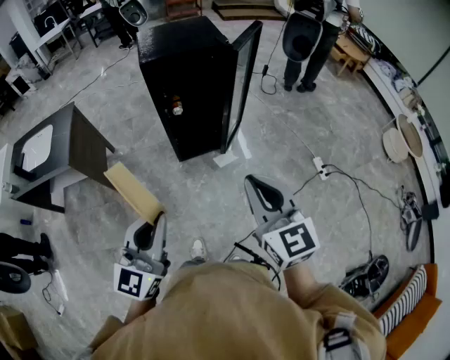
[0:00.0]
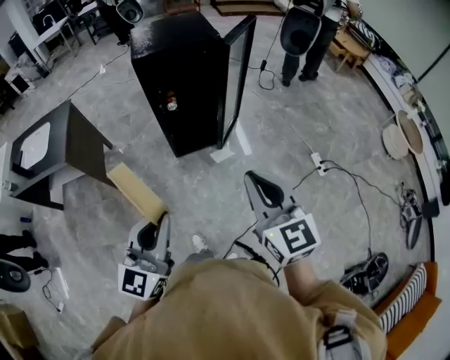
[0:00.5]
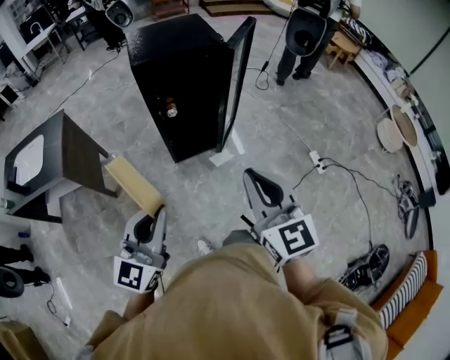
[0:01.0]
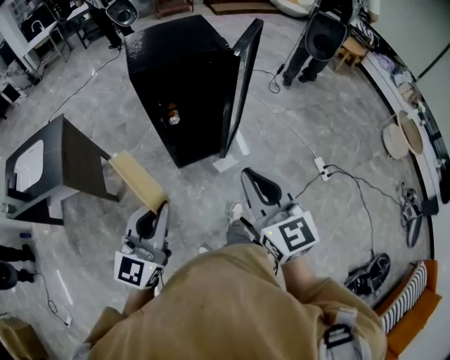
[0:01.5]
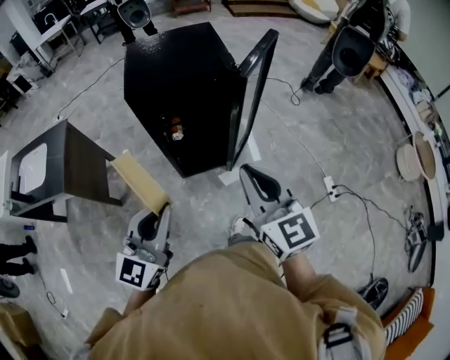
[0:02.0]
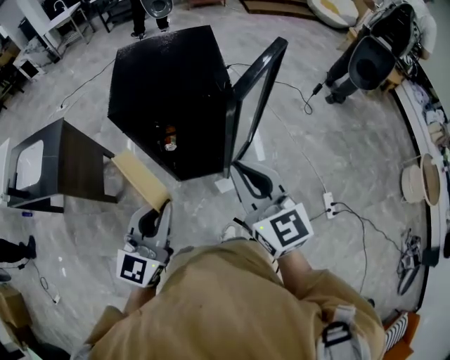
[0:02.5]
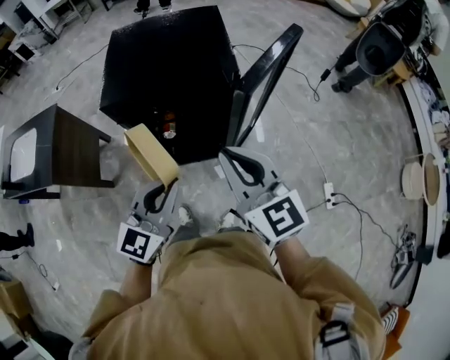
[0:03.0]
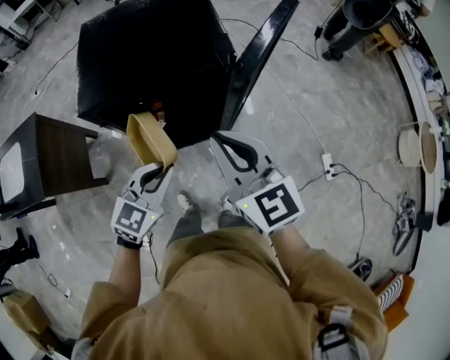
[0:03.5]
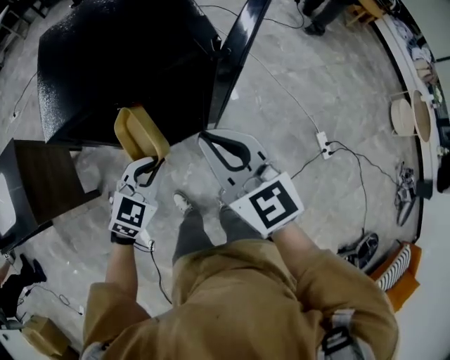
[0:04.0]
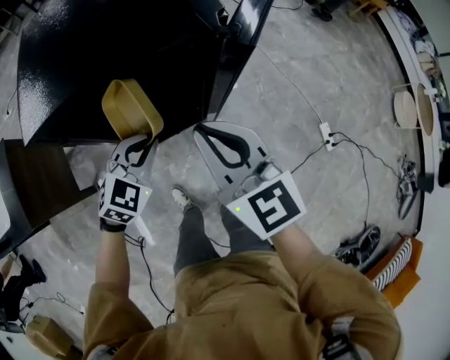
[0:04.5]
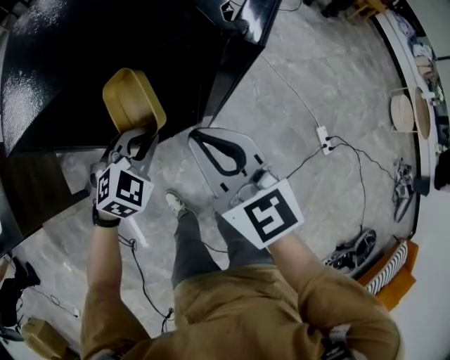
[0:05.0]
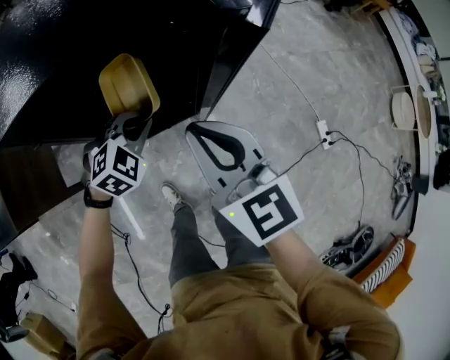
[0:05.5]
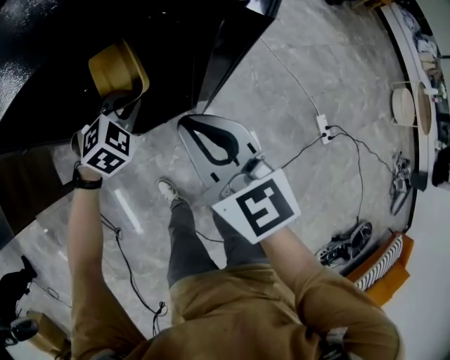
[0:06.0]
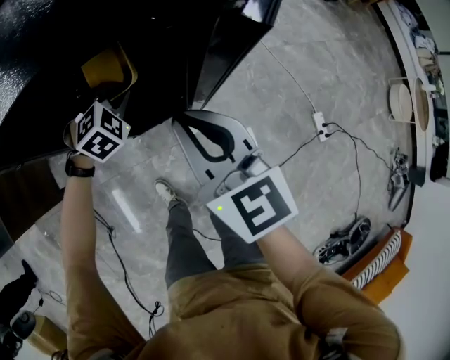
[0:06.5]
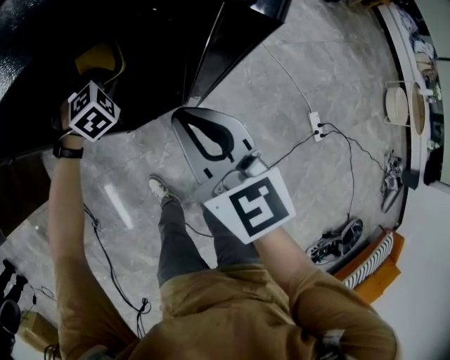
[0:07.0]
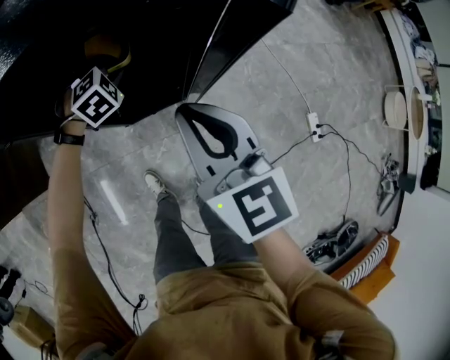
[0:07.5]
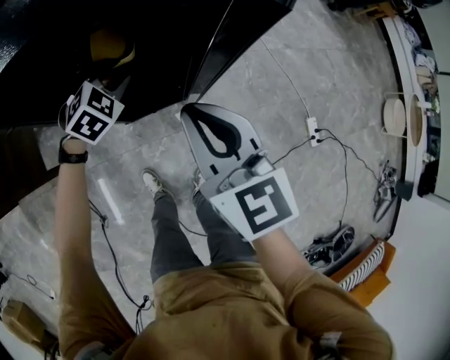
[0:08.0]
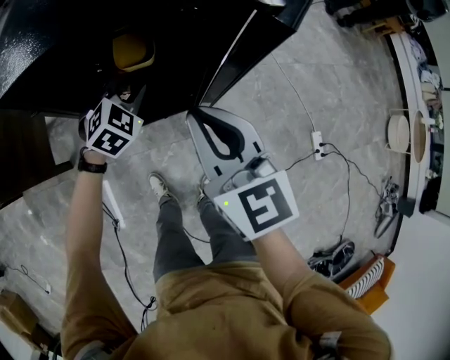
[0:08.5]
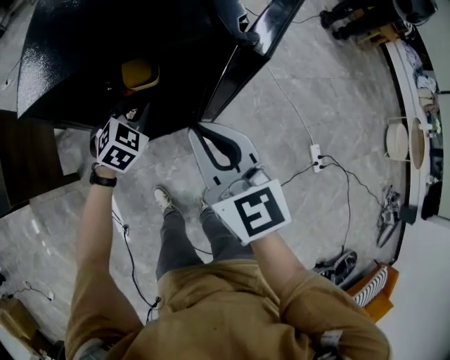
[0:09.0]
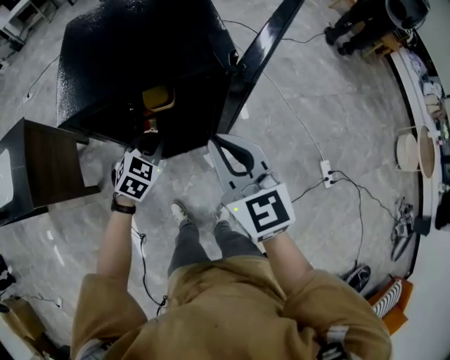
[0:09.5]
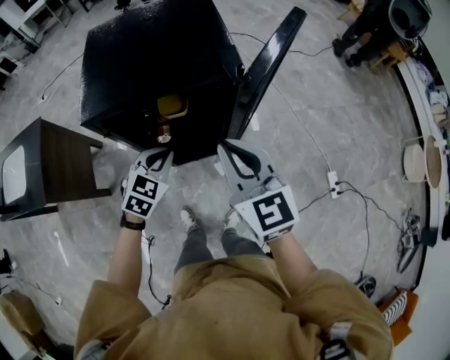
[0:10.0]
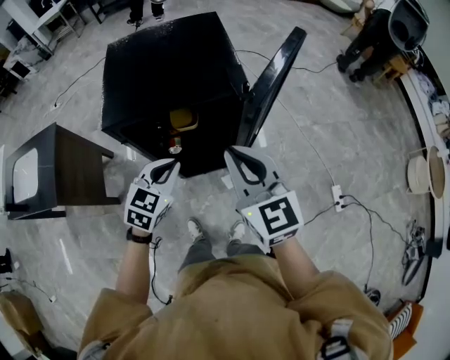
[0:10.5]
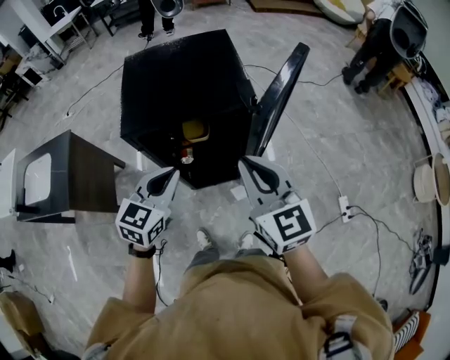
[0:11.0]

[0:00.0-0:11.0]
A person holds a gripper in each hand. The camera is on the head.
0:00.0 to 0:02.0: The two grippers go approximately 25 cm forward.
0:02.0 to 0:03.5: The right gripper goes some 25 cm forward, while the left gripper goes about 30 cm forward and downward, and swivels approximately 30 degrees.
0:03.5 to 0:05.5: The left gripper travels downward and forward by about 20 cm, and rotates some 40 degrees, while the right gripper shifts approximately 10 cm downward.
0:05.5 to 0:07.5: The left gripper goes some 15 cm forward and downward.
0:07.5 to 0:09.0: The right gripper travels upward by some 5 cm, while the left gripper heads upward and backward, covering approximately 10 cm, and rotates roughly 20 degrees.
0:09.0 to 0:11.0: The right gripper shifts about 15 cm upward and backward, while the left gripper goes about 25 cm upward and backward, and turns by approximately 30 degrees.

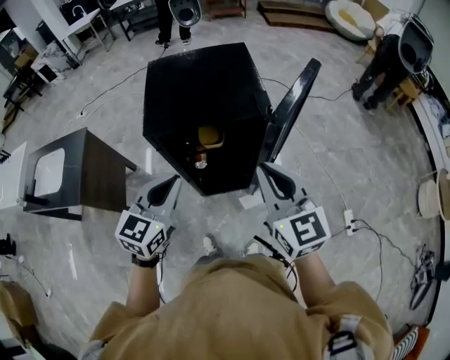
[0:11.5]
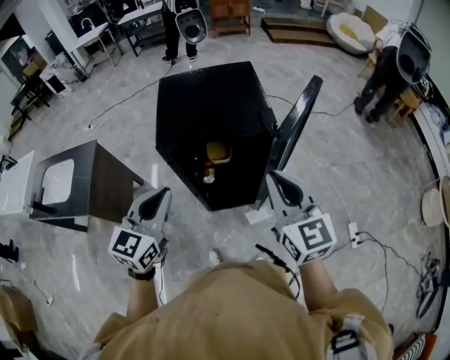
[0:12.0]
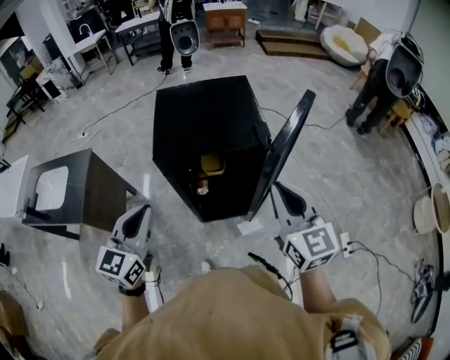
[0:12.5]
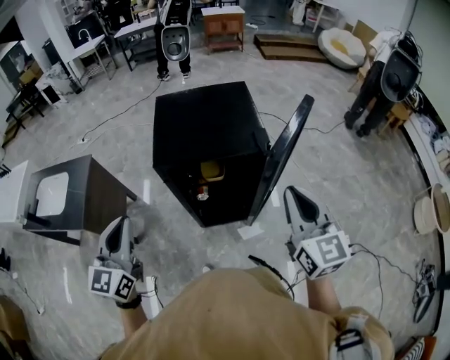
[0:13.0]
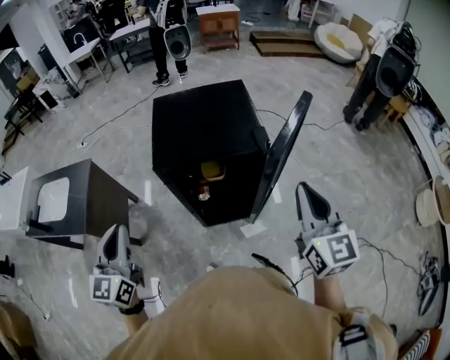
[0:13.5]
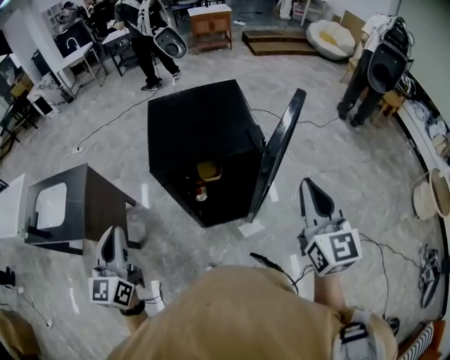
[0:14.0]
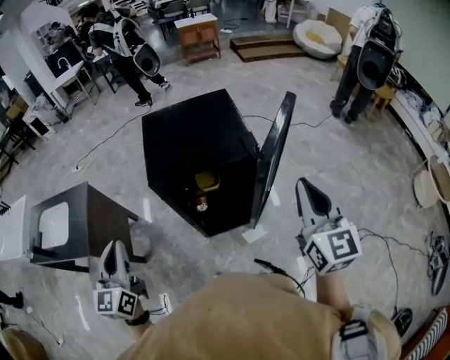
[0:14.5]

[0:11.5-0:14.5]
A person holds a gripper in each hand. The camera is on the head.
0:11.5 to 0:13.0: The right gripper moves approximately 5 cm, while the left gripper travels to the left and upward by some 15 cm, and turns by some 20 degrees.
0:13.0 to 0:14.5: The right gripper ends up roughly 5 cm from where it was.

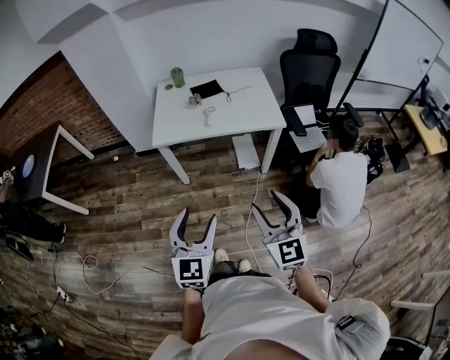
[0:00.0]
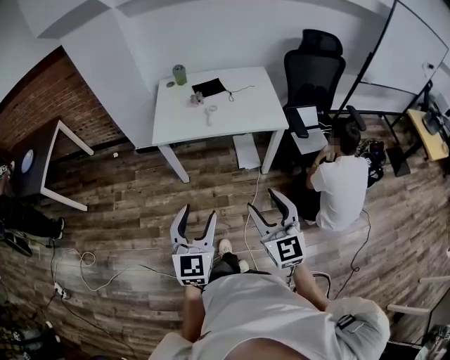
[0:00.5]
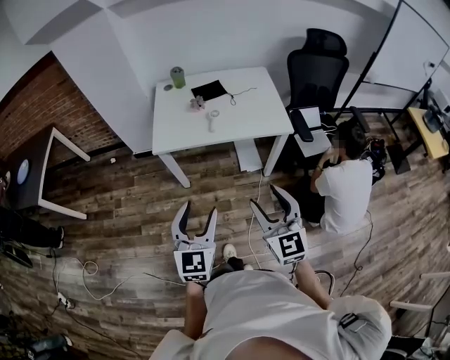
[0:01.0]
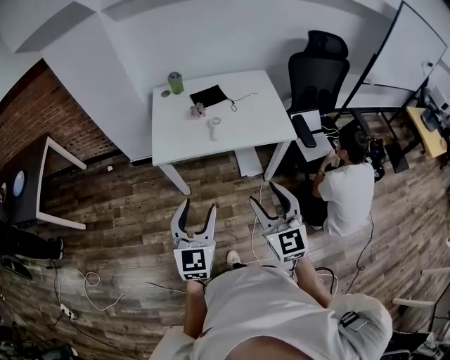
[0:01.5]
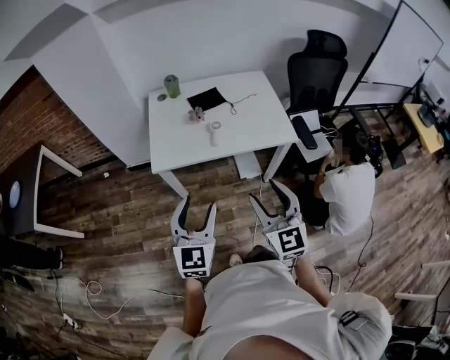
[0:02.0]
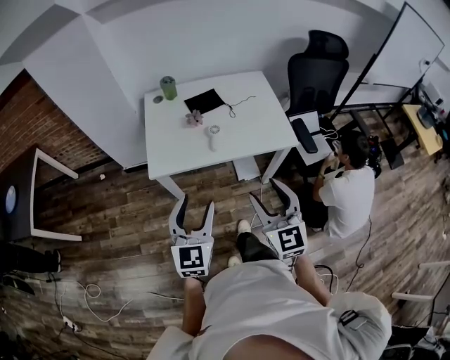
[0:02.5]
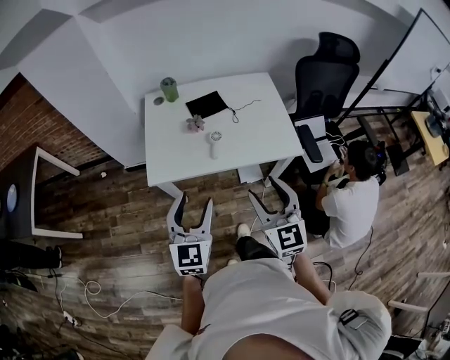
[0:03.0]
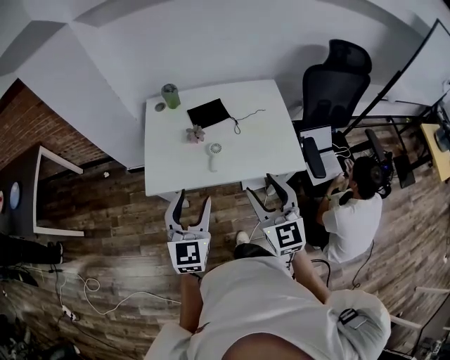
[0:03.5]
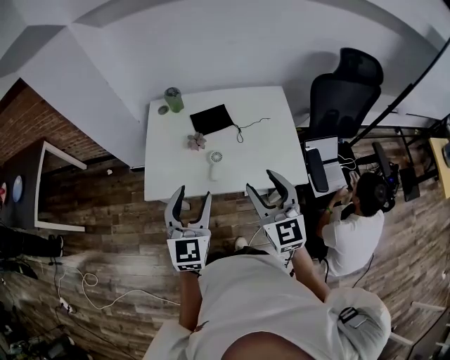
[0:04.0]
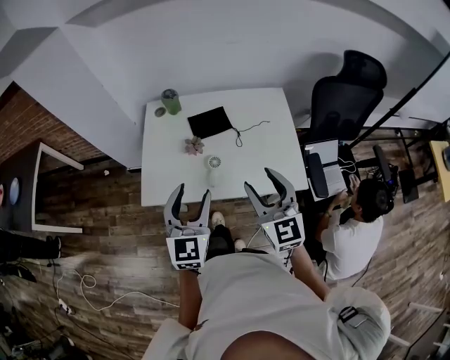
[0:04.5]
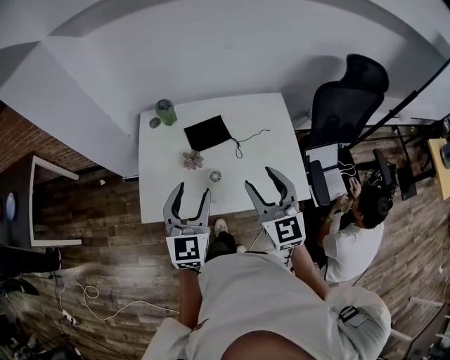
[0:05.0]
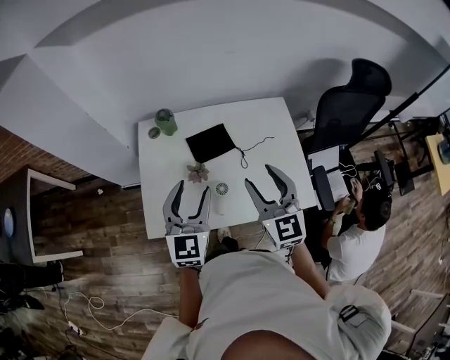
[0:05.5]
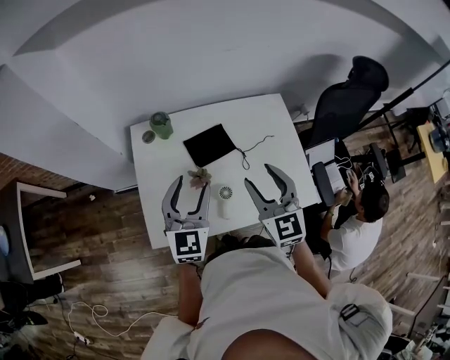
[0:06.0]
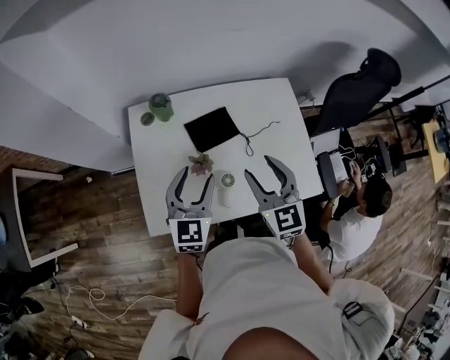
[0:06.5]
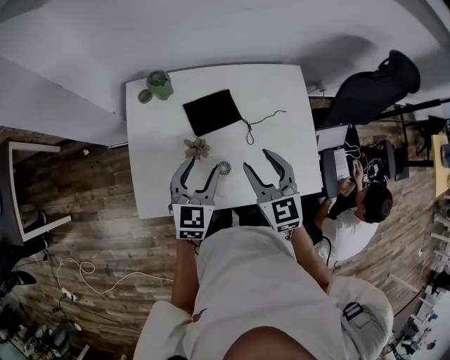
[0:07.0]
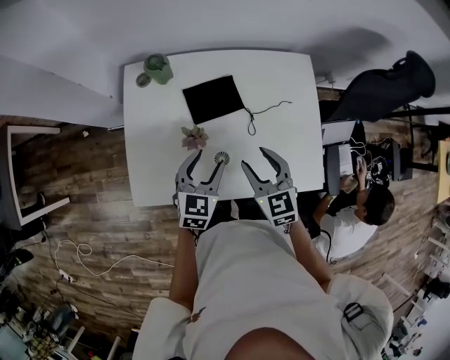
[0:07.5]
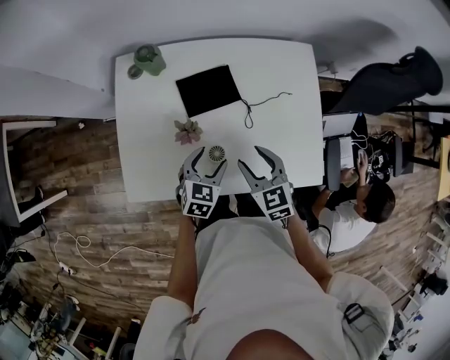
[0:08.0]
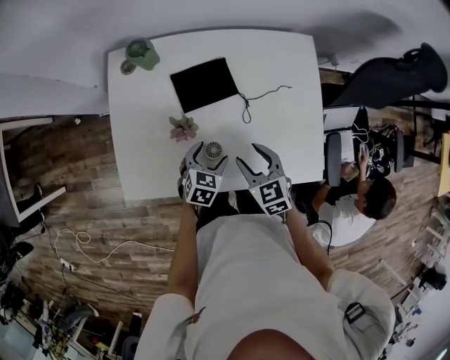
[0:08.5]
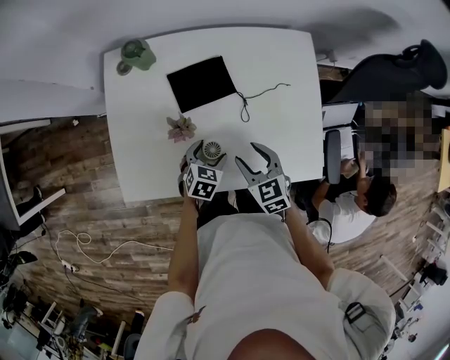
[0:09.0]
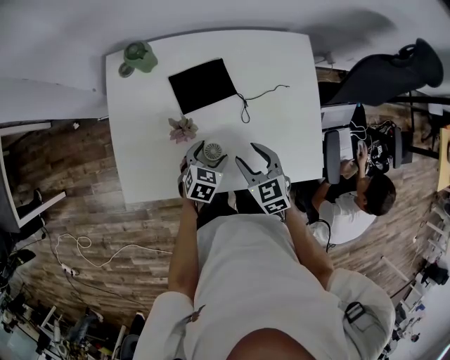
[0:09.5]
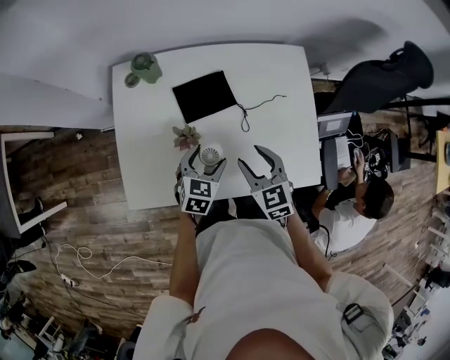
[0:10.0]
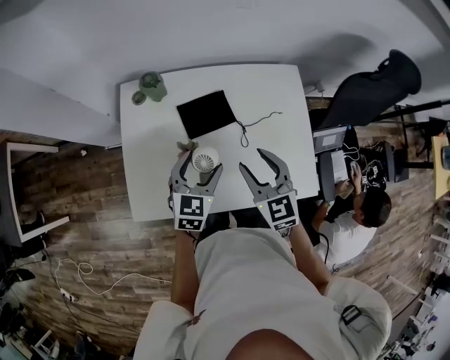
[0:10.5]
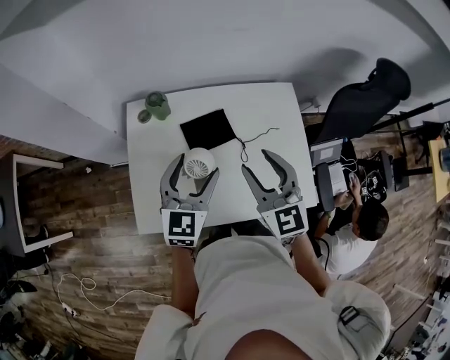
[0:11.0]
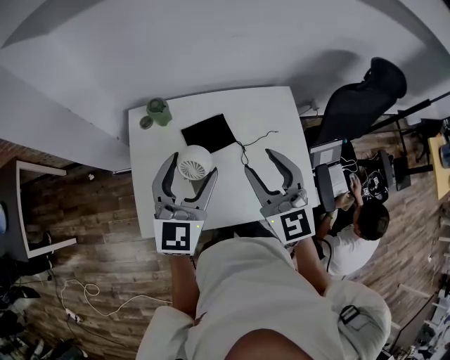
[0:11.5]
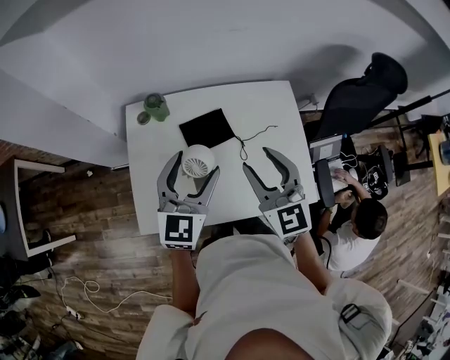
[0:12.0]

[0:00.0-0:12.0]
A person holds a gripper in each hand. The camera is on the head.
0:00.0 to 0:02.0: Both grippers move forward, roughly 20 cm.
0:02.0 to 0:04.0: Both grippers move forward, about 25 cm.
0:04.0 to 0:06.0: The grippers both shift forward by approximately 25 cm.
0:06.0 to 0:08.0: Both grippers move downward, some 25 cm. The right gripper changes its angle by approximately 30 degrees, while the left gripper tilts its fingers some 30 degrees downward.
0:08.0 to 0:10.0: The left gripper travels downward and back again, approximately 10 cm each way.
0:10.0 to 0:12.0: Both grippers move upward, approximately 25 cm. The right gripper swivels some 30 degrees. Meanwhile the left gripper tilts its fingers some 30 degrees upward.

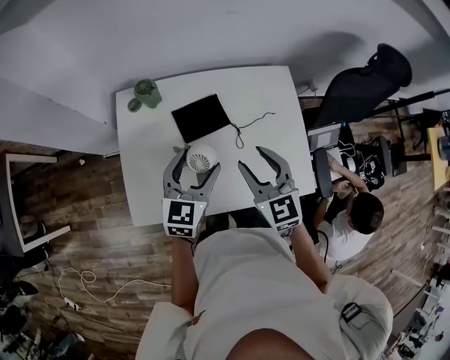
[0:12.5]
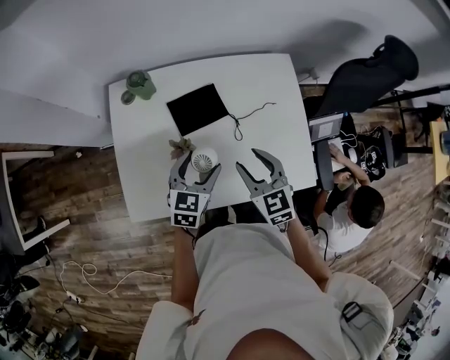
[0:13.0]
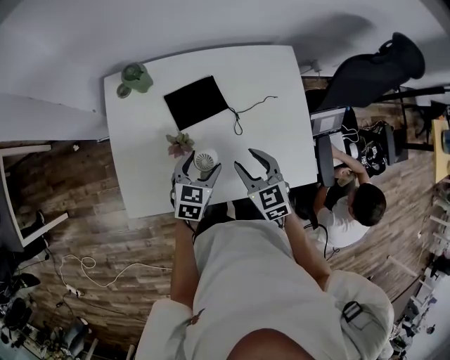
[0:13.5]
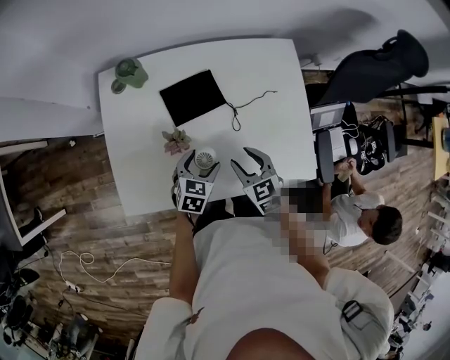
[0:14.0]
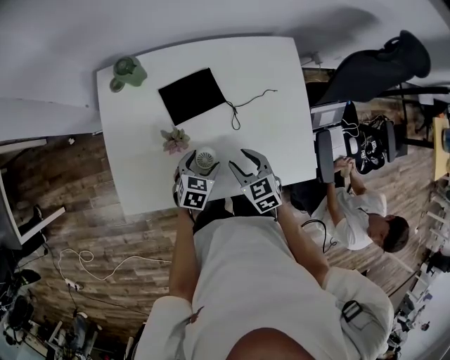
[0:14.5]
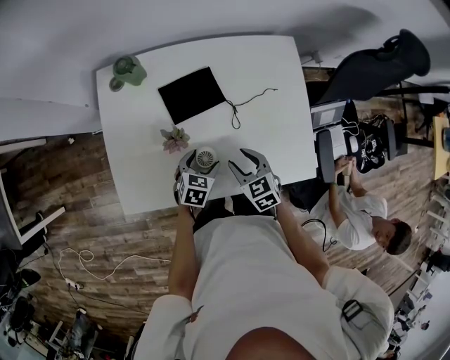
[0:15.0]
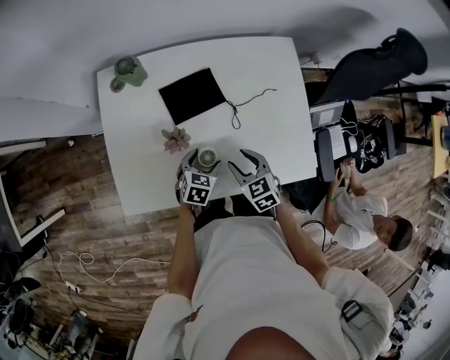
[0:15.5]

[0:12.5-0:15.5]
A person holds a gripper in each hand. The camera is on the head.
0:12.5 to 0:14.0: The two grippers go about 20 cm downward. The right gripper turns by roughly 20 degrees; the left gripper swivels about 30 degrees.
0:14.0 to 0:15.5: There are only small adjustments of the grippers.
